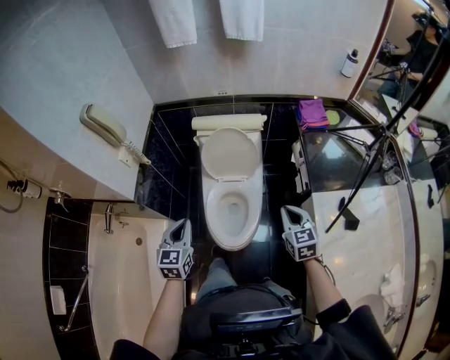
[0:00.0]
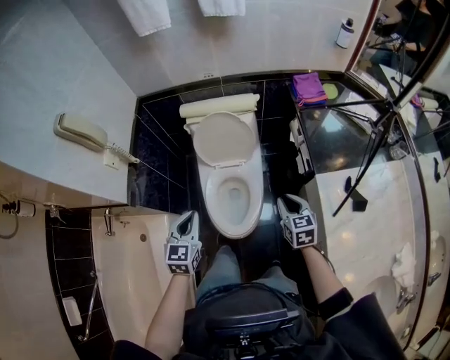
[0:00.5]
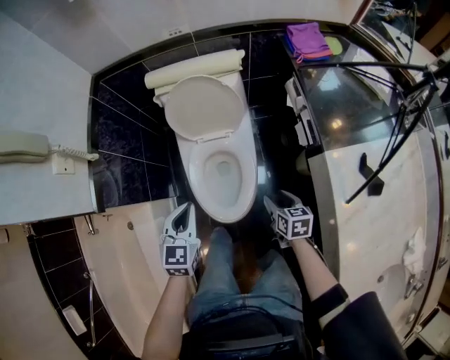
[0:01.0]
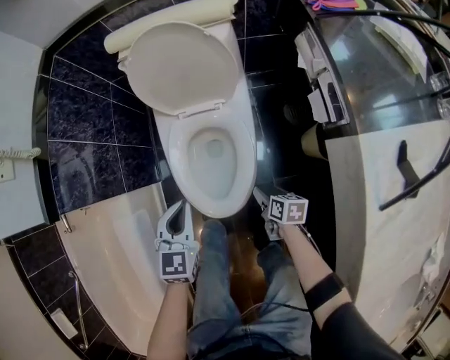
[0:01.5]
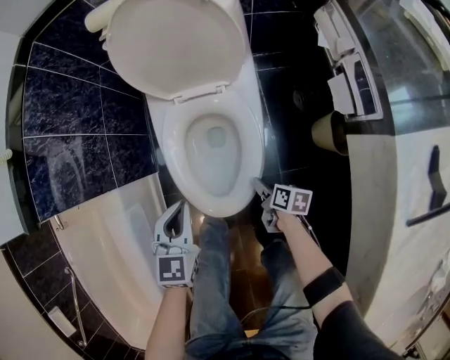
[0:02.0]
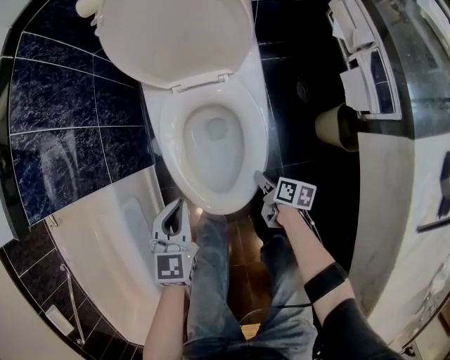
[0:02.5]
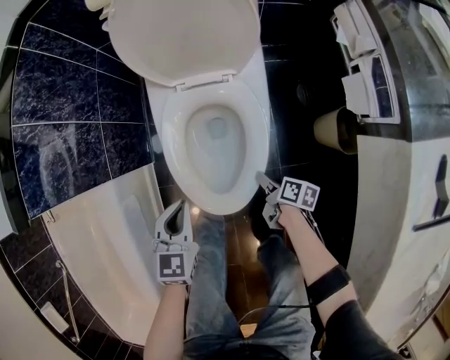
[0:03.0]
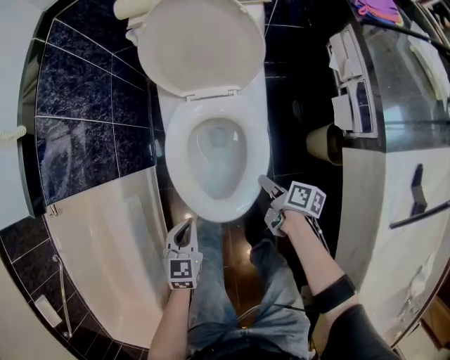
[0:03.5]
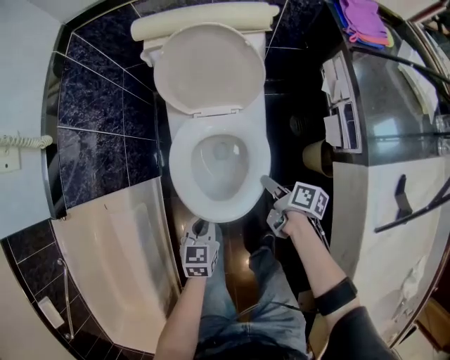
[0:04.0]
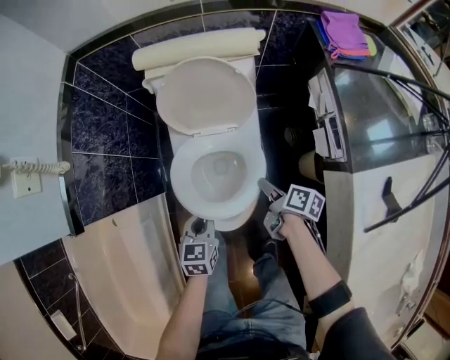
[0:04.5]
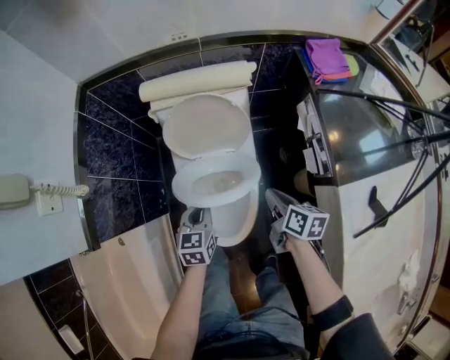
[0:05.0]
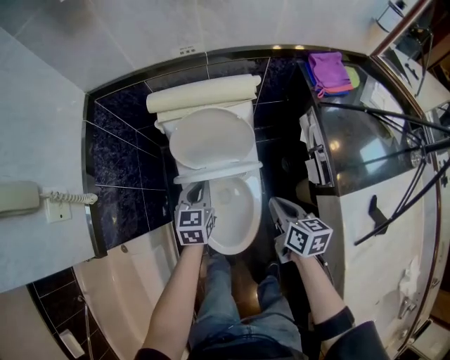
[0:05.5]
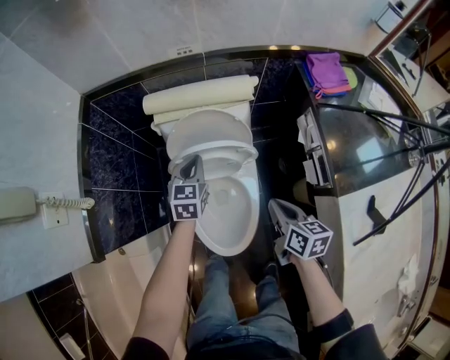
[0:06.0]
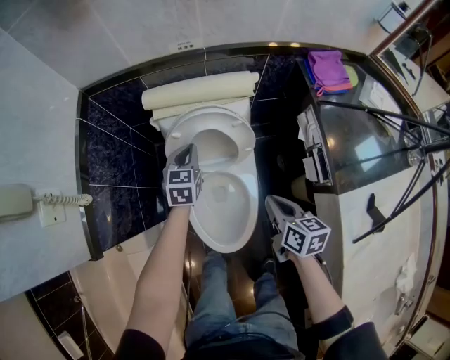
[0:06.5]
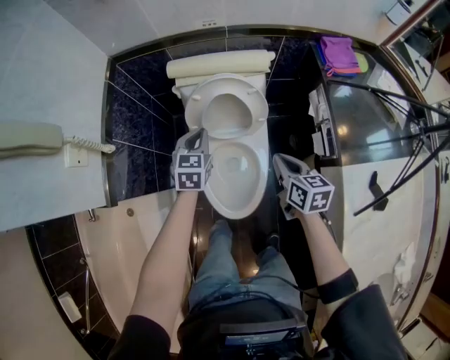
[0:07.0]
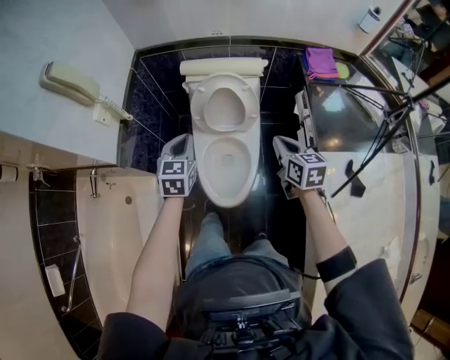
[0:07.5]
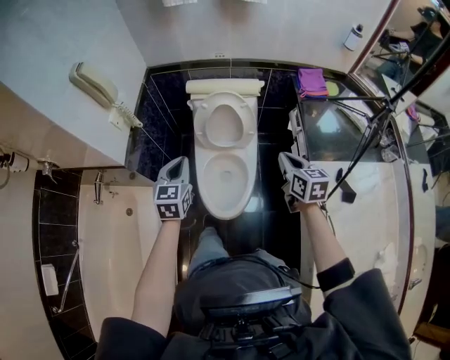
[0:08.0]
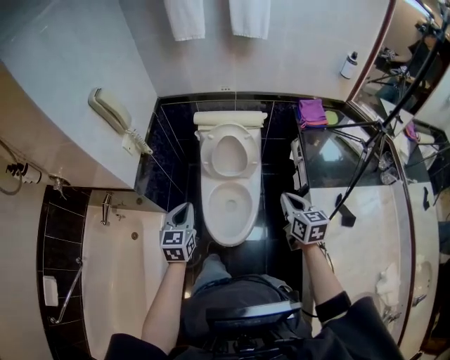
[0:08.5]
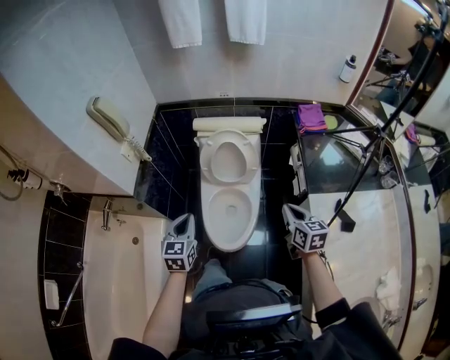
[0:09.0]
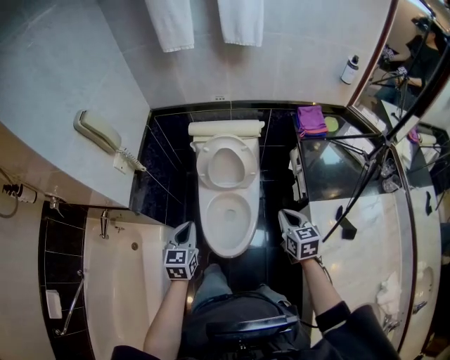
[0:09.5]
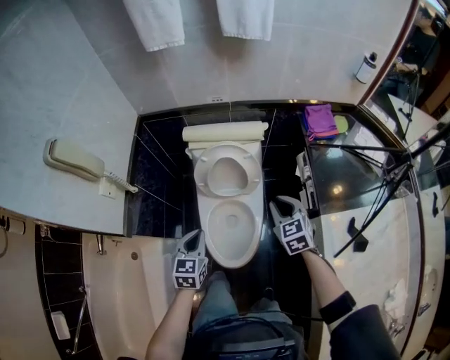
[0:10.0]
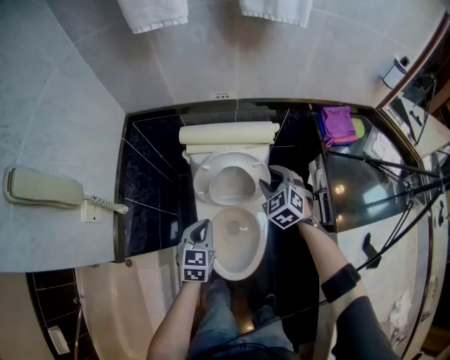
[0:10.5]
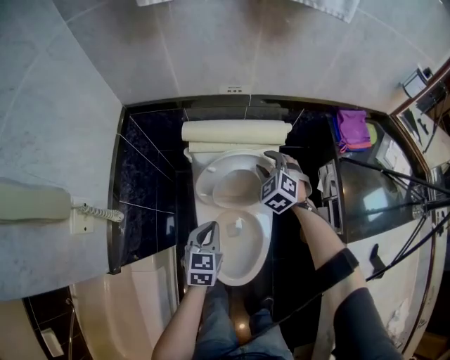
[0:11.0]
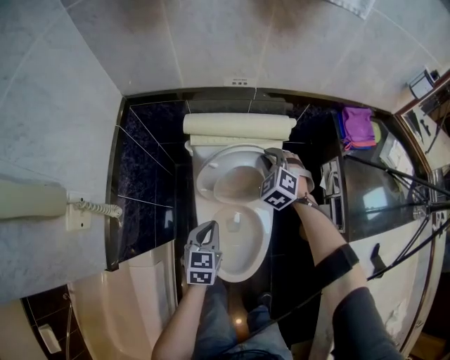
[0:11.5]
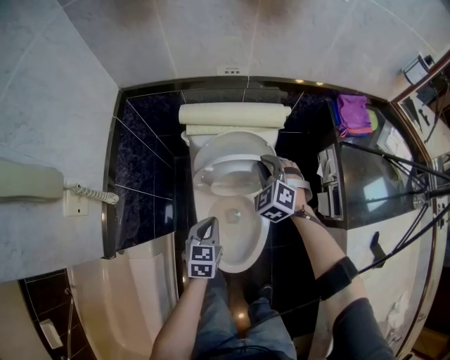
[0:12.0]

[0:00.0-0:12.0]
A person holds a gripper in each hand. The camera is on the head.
0:00.0 to 0:02.0: The left gripper is displaced downward by some 35 cm. The right gripper heads downward, covering some 60 cm, twists roughly 60 degrees clockwise, seen from behind, and opens its fingers.
0:02.0 to 0:04.0: The right gripper heads upward and forward, covering roughly 20 cm, and closes up.
0:04.0 to 0:06.0: The right gripper goes about 25 cm upward, turns by some 40 degrees, and closes its fingers. The left gripper is displaced forward and upward by some 35 cm.
0:06.0 to 0:08.0: The left gripper is displaced backward and upward by approximately 35 cm; the right gripper heads upward and backward, covering approximately 20 cm, and swivels roughly 20 degrees.
0:08.0 to 0:10.0: The left gripper is displaced downward by some 10 cm, and goes backward and returns, about 10 cm each way; the right gripper moves forward and downward, about 10 cm, and changes its angle by roughly 30 degrees.
0:10.0 to 0:12.0: The right gripper travels forward, downward and to the left by roughly 25 cm, rotates approximately 40 degrees, and opens, then closes again. Meanwhile the left gripper is displaced downward and forward by roughly 20 cm.

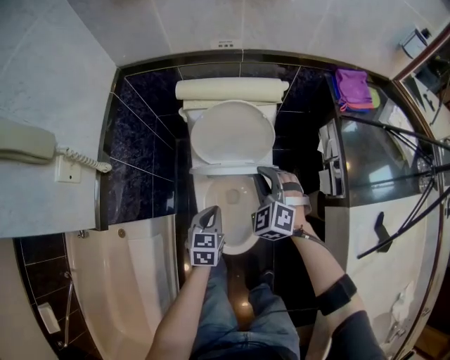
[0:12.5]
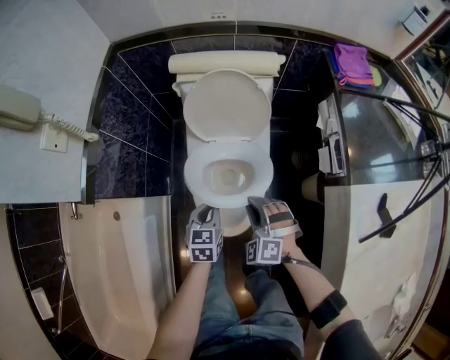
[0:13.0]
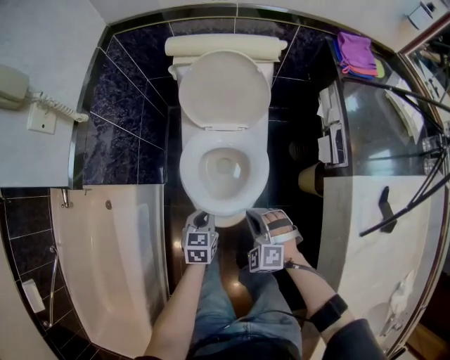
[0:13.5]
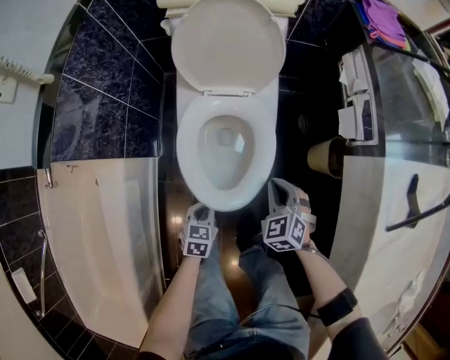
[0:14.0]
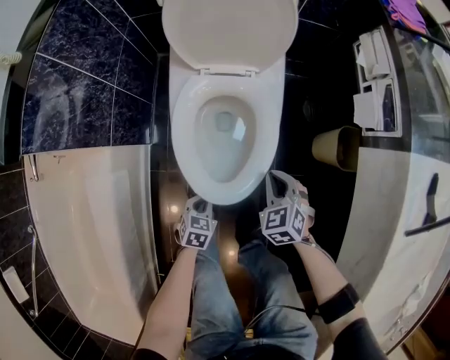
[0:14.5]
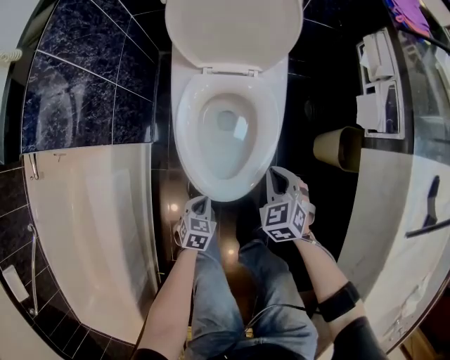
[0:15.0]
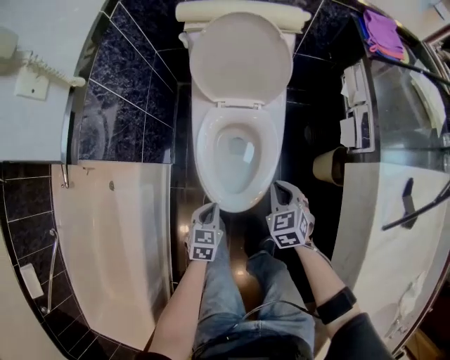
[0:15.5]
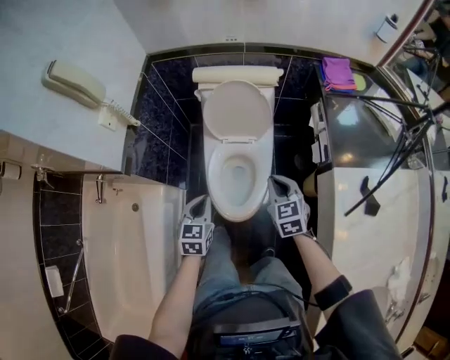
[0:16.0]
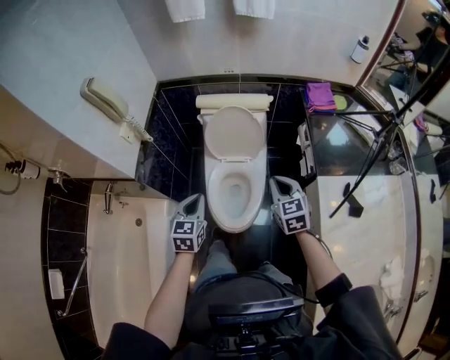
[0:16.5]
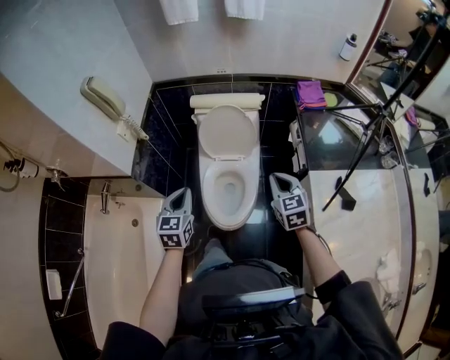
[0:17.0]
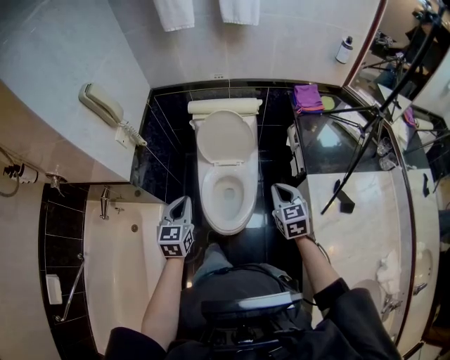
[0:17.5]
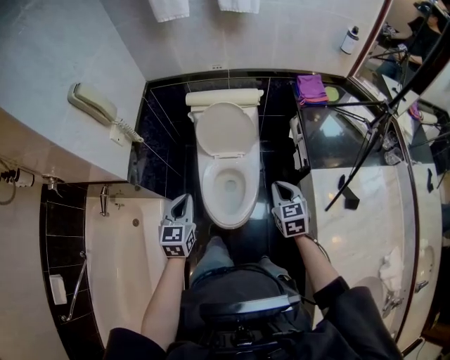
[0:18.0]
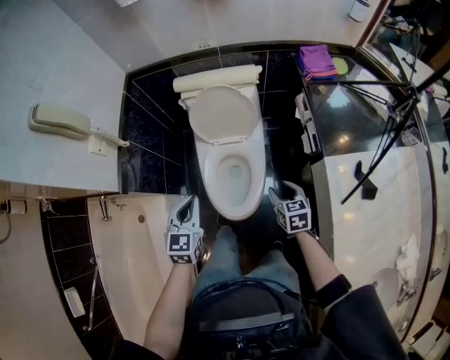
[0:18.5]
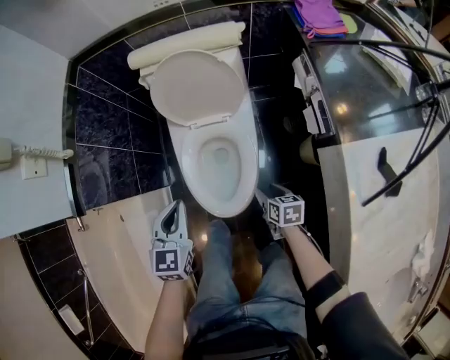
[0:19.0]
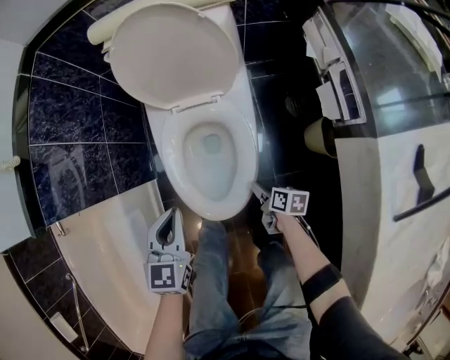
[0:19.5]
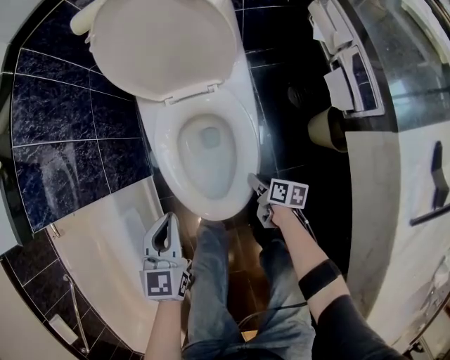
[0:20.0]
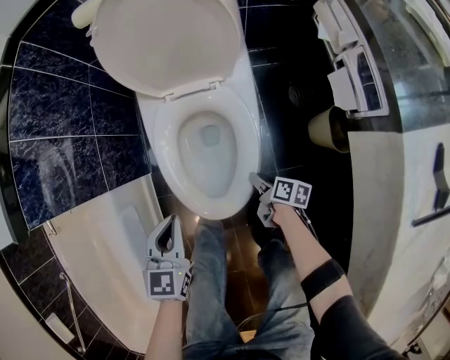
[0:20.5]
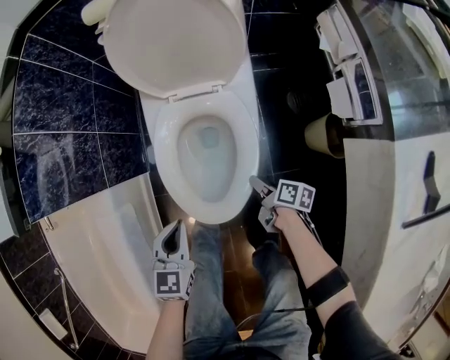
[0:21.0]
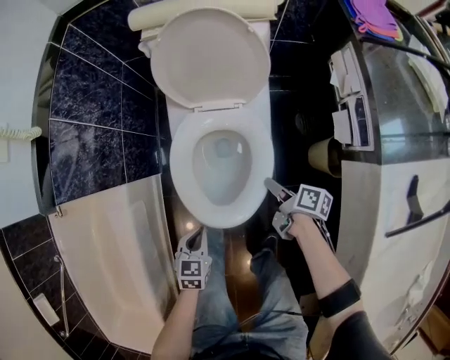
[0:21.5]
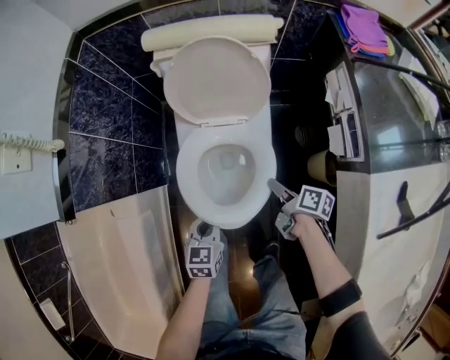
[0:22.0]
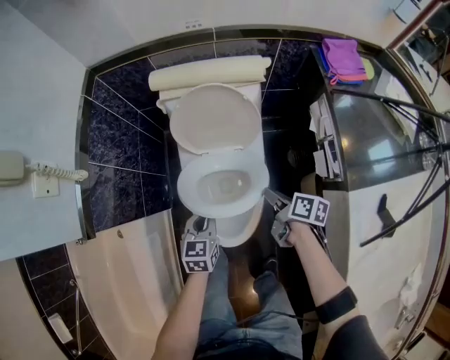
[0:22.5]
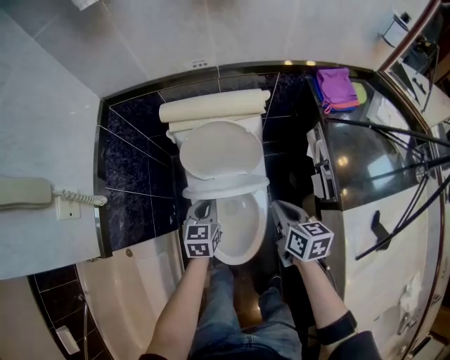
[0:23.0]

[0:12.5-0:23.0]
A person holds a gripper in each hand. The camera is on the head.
0:12.5 to 0:14.5: The grippers both shift downward and backward by about 40 cm. The left gripper rotates roughly 20 degrees. Meanwhile the right gripper rotates about 30 degrees.
0:14.5 to 0:16.5: Both grippers travel together upward, roughly 50 cm. The right gripper turns by about 30 degrees. Meanwhile the left gripper rotates approximately 30 degrees.
0:16.5 to 0:19.0: The left gripper moves downward, roughly 15 cm. The right gripper shifts about 40 cm downward, twists approximately 40 degrees clockwise, seen from behind, and opens its fingers.
0:19.0 to 0:21.0: The two grippers go approximately 20 cm downward. The right gripper turns by about 40 degrees, and closes its fingers.
0:21.0 to 0:23.0: The right gripper shifts approximately 40 cm upward and forward, rotates approximately 40 degrees, and closes; the left gripper moves forward and upward, approximately 30 cm.

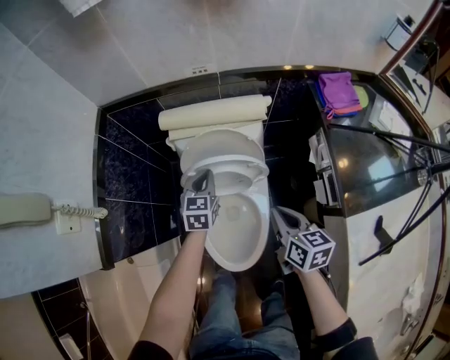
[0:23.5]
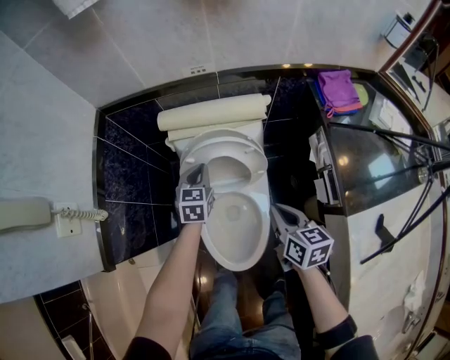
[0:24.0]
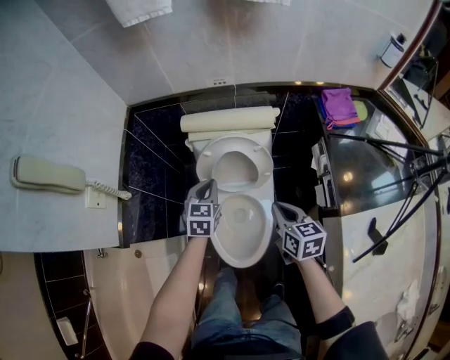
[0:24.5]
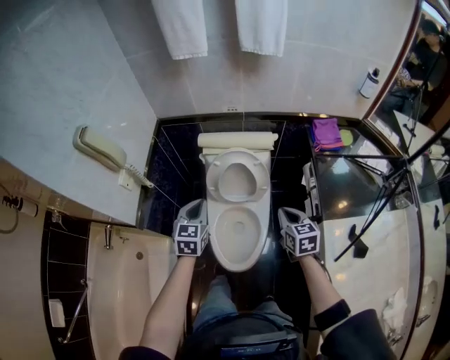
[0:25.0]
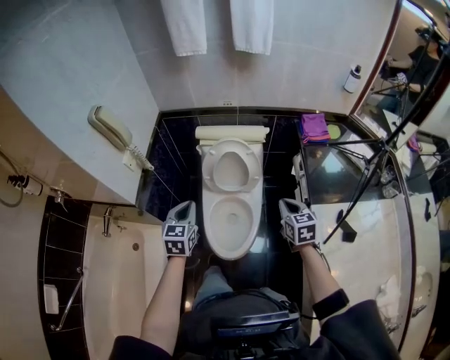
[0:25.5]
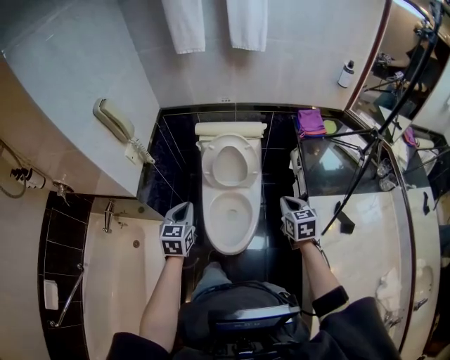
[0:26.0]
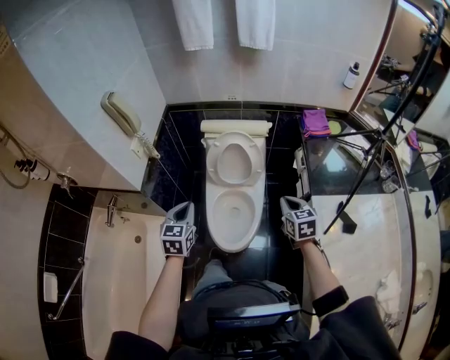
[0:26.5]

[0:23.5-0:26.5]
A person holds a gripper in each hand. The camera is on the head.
0:23.5 to 0:25.0: The left gripper heads upward and backward, covering some 30 cm. Meanwhile the right gripper shifts roughly 15 cm upward and backward, and changes its angle by some 20 degrees.
0:25.0 to 0:26.5: The right gripper travels backward by some 10 cm; the left gripper heads backward, covering about 15 cm.

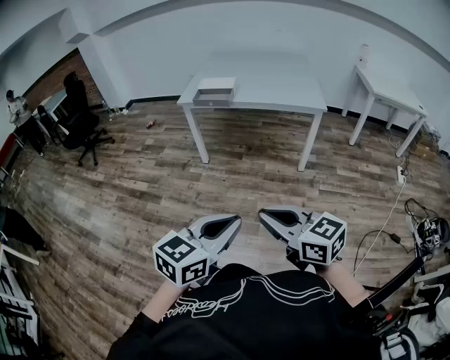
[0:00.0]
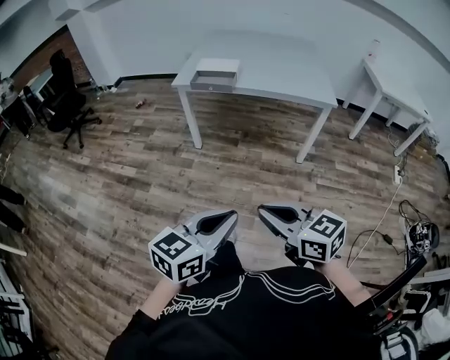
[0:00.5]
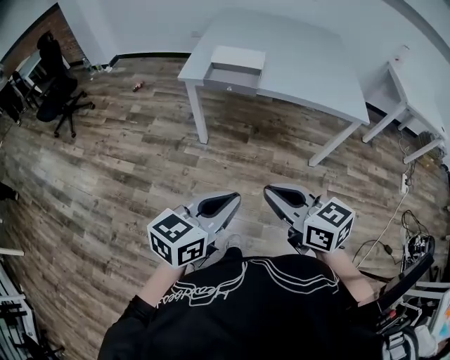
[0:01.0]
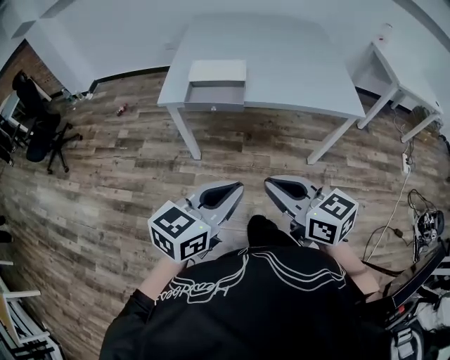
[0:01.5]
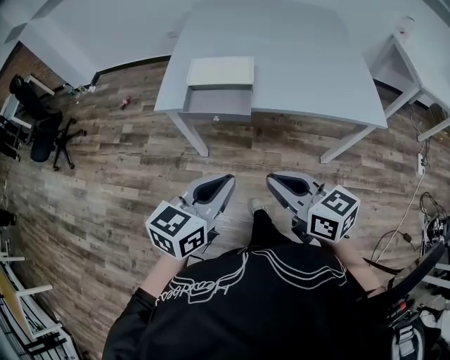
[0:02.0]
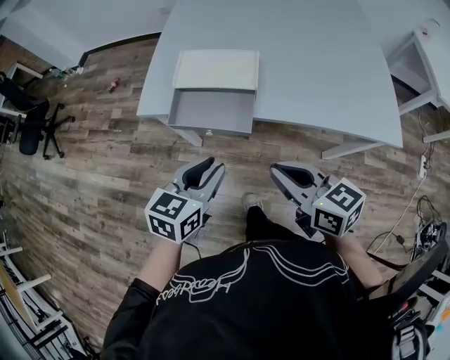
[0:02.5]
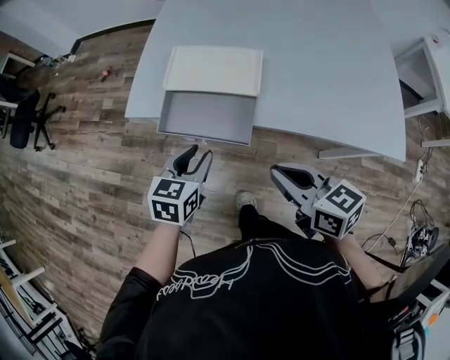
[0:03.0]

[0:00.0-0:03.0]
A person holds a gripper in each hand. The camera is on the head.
0:00.0 to 0:01.5: Both grippers are carried forward, some 40 cm.
0:01.5 to 0:03.0: Both grippers move forward and downward, approximately 35 cm. The left gripper changes its angle by about 30 degrees, and opens its fingers.
